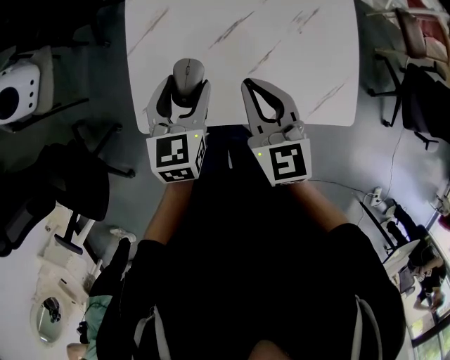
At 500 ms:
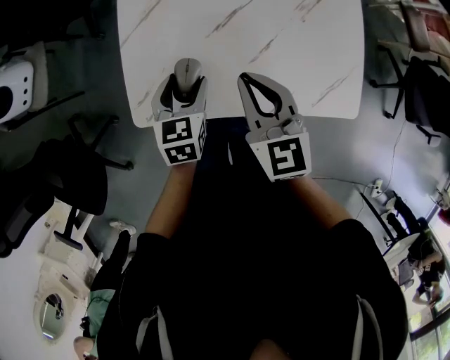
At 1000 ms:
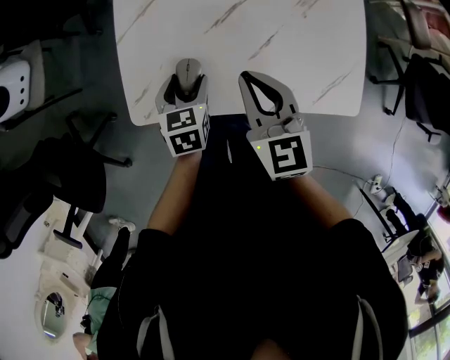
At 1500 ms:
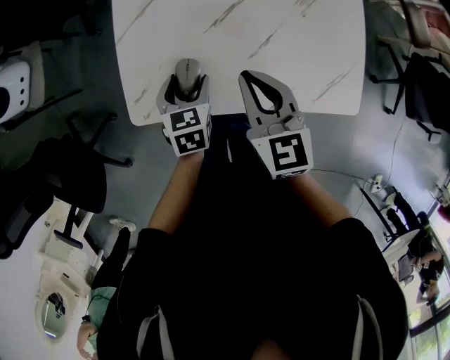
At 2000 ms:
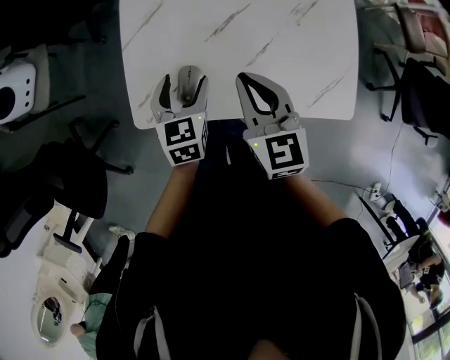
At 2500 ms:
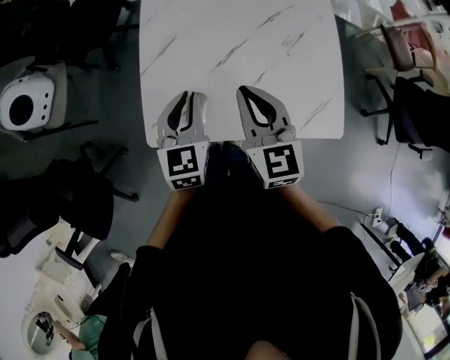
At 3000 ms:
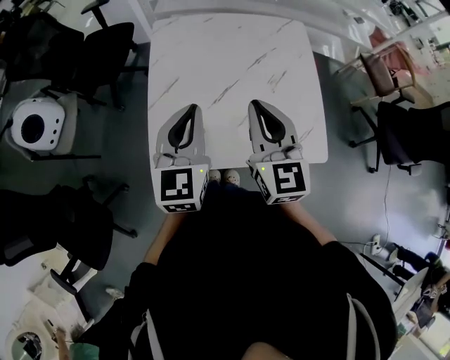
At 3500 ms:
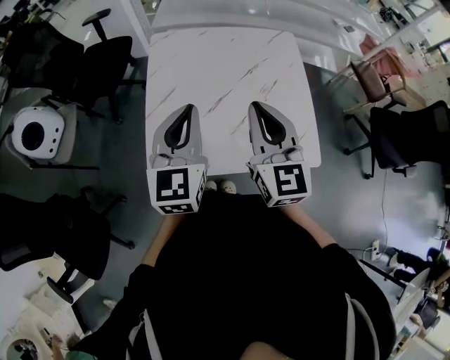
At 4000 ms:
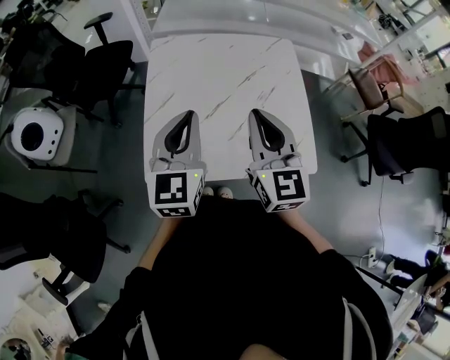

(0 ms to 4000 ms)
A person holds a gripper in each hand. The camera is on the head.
0 ms - 2000 ms: The left gripper travels downward by about 5 cm.
2000 ms - 4000 ms: The grippers both shift upward by some 25 cm. The right gripper turns by some 20 degrees, while the left gripper points its fingers roughly 30 degrees further upward, and closes up.

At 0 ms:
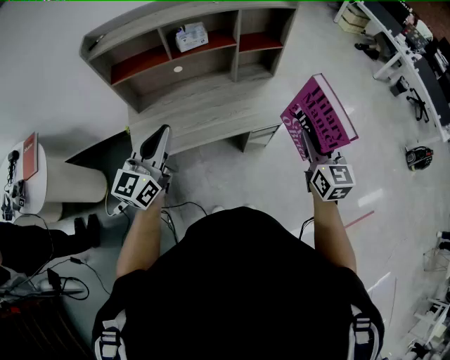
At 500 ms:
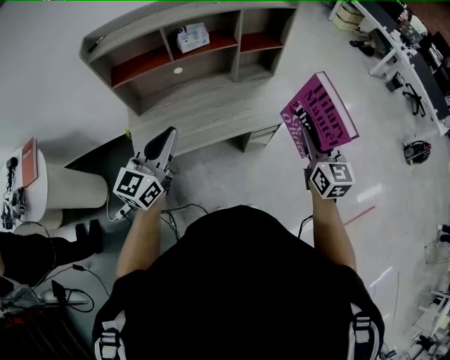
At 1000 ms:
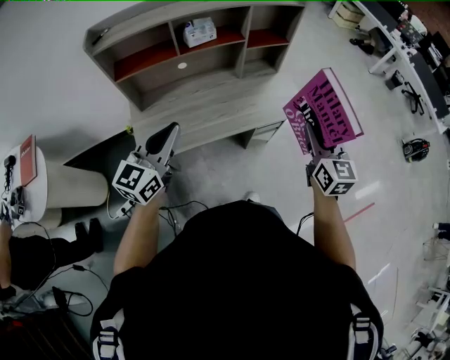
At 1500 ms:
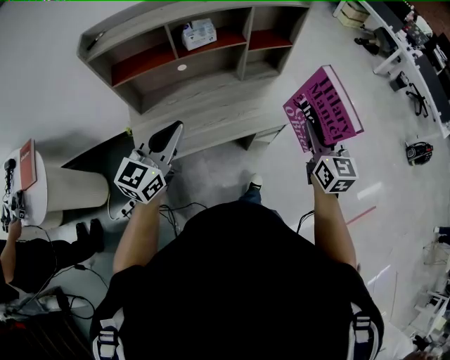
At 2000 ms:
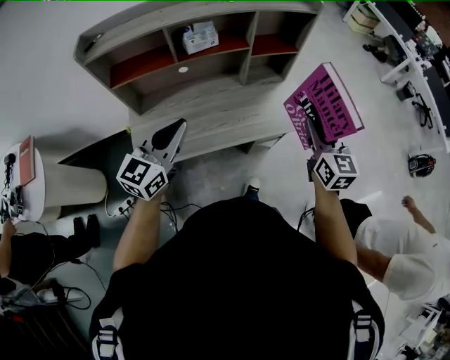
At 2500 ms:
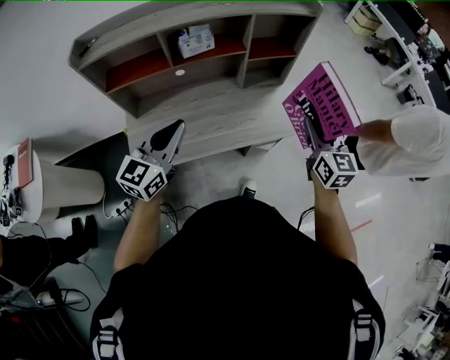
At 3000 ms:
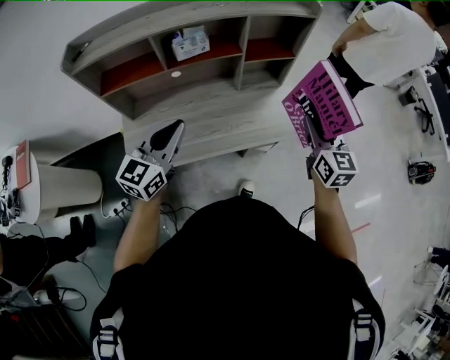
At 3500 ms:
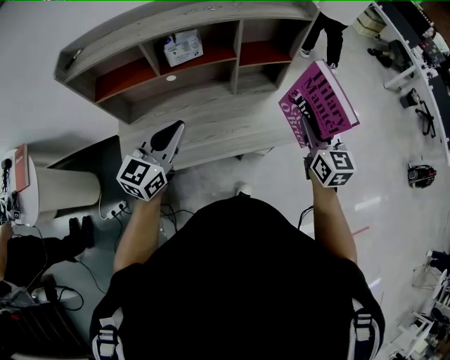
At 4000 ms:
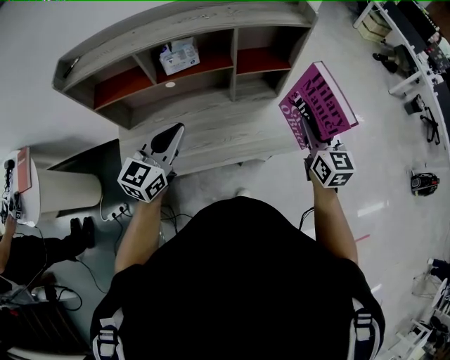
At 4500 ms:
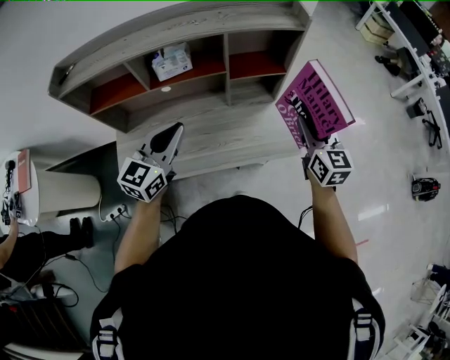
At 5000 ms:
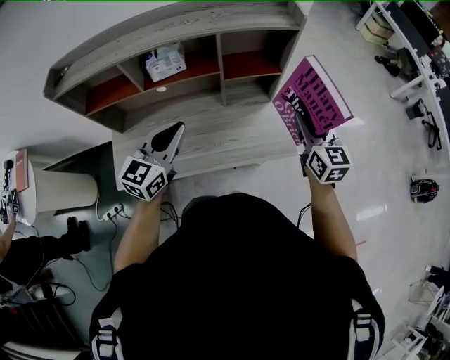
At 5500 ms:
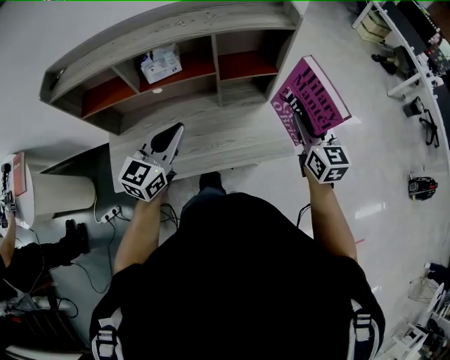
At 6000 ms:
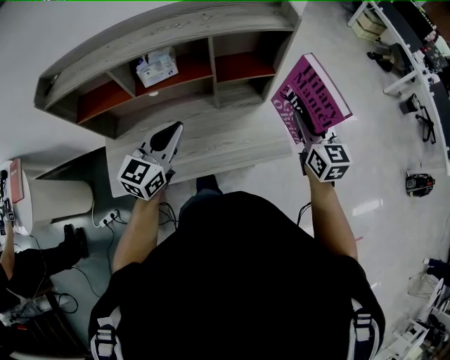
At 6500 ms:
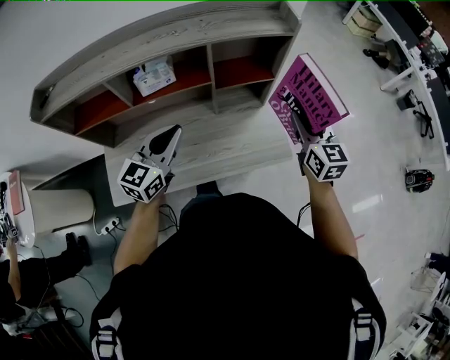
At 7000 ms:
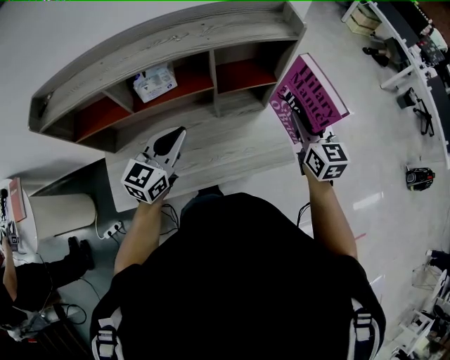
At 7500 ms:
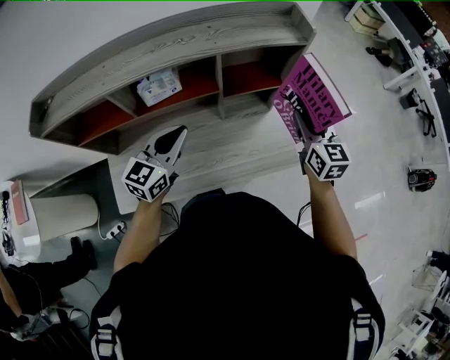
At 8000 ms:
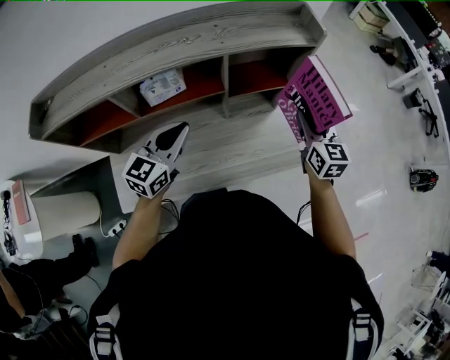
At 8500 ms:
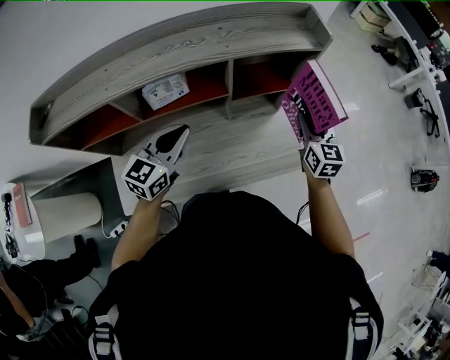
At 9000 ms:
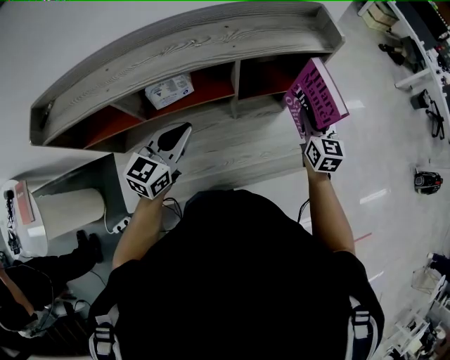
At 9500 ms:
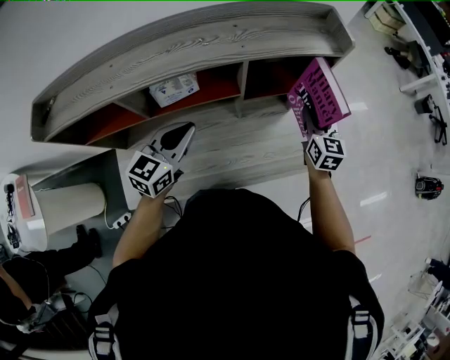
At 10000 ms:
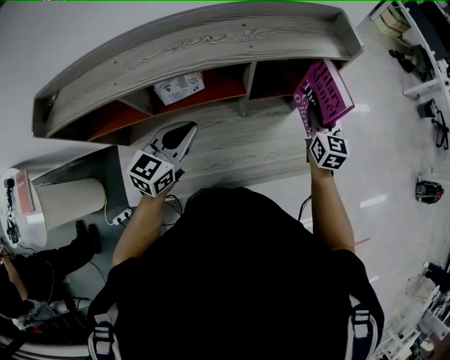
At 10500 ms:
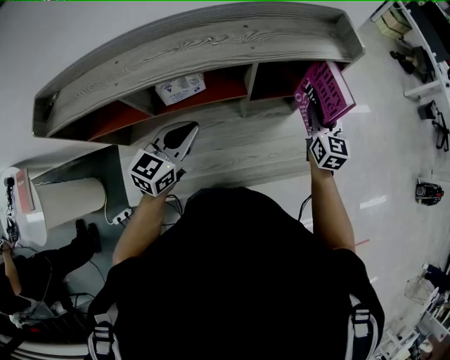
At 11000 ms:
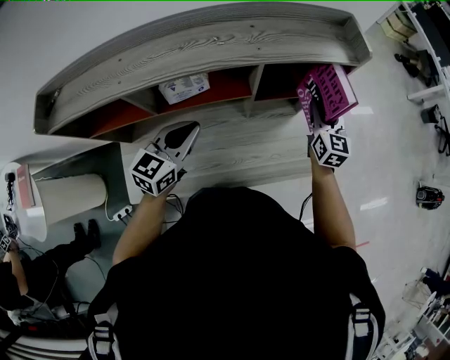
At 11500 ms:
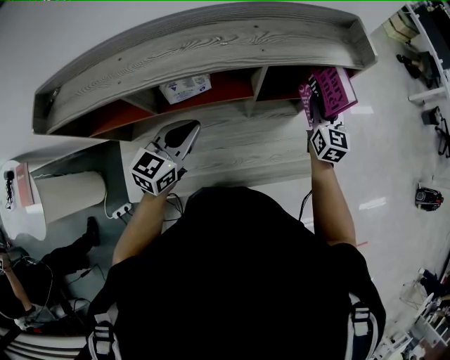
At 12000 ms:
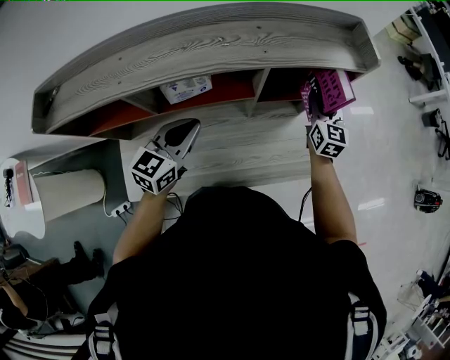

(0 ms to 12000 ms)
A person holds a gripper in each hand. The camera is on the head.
0 ms - 2000 ms: The right gripper travels forward and to the left by some 10 cm. The left gripper heads forward, covering about 10 cm.
2000 ms - 4000 ms: The right gripper moves forward, roughly 15 cm; the left gripper heads forward and to the right, covering some 15 cm.
4000 ms - 6000 ms: The right gripper moves forward, approximately 5 cm. Meanwhile the left gripper heads forward and to the right, covering roughly 10 cm.
6000 ms - 8000 ms: Both grippers move forward, approximately 10 cm.
8000 ms - 10000 ms: The right gripper travels forward and downward by roughly 10 cm.
10000 ms - 12000 ms: The right gripper heads forward, covering roughly 5 cm.

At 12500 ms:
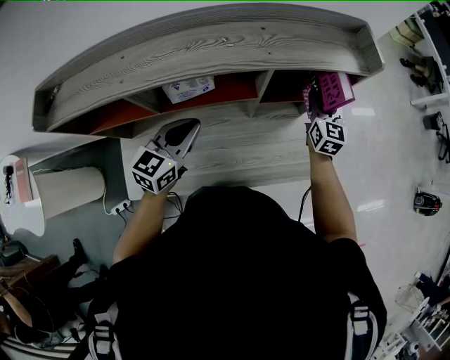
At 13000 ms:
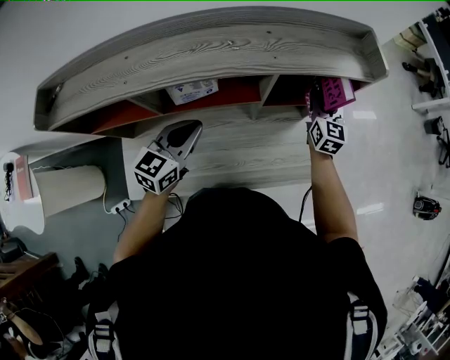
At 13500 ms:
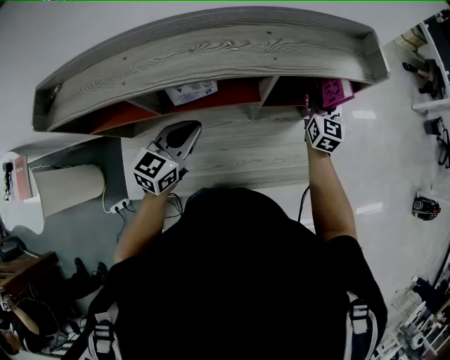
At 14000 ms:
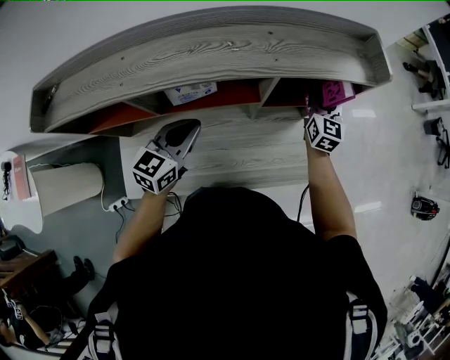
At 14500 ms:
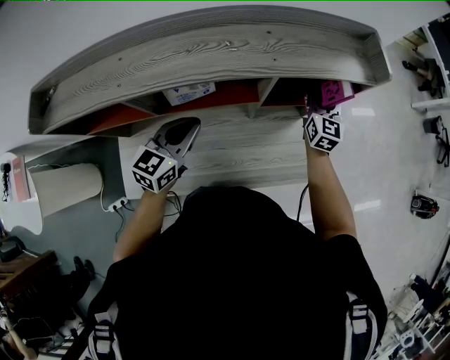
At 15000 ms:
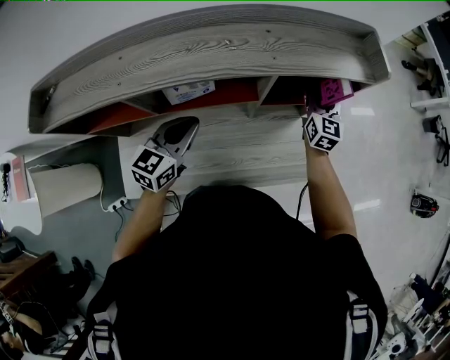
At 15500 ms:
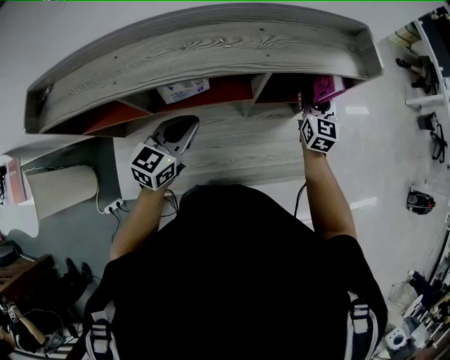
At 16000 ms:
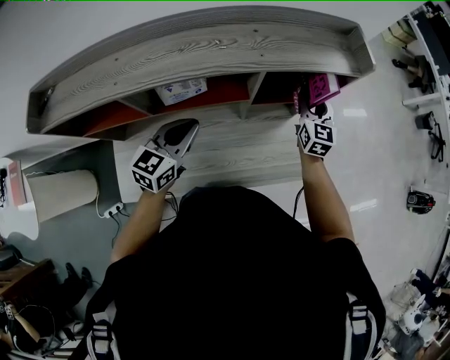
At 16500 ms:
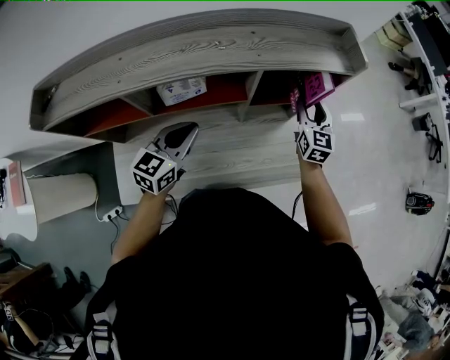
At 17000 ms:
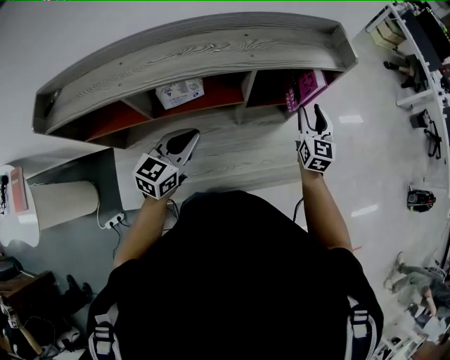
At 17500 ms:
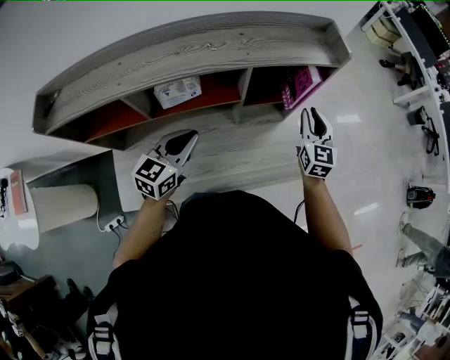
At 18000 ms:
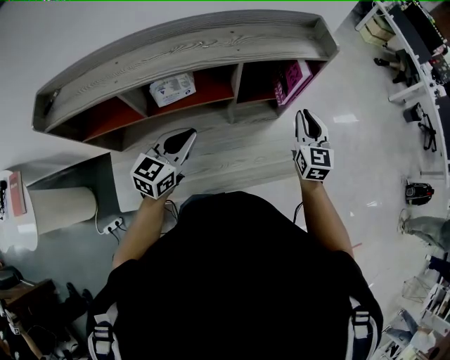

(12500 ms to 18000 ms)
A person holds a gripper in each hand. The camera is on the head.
12500 ms - 16000 ms: The grippers stay close to where they were, moving slightly.
16000 ms - 18000 ms: The left gripper shifts by some 5 cm. Meanwhile the right gripper travels backward, to the right and upward by some 15 cm, and closes.

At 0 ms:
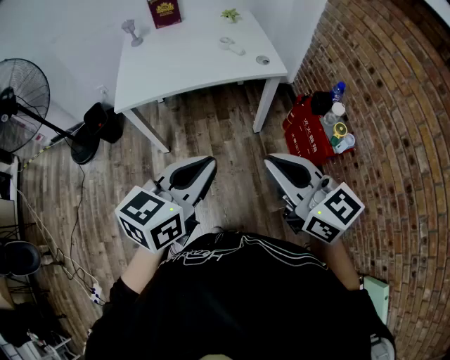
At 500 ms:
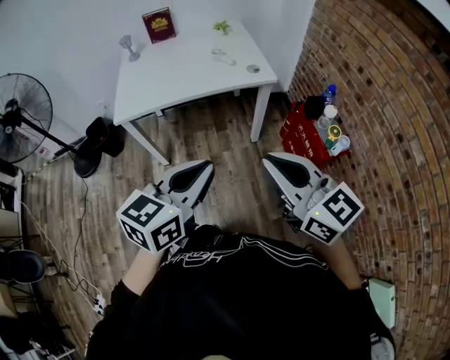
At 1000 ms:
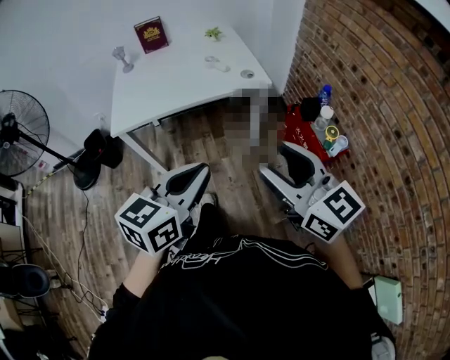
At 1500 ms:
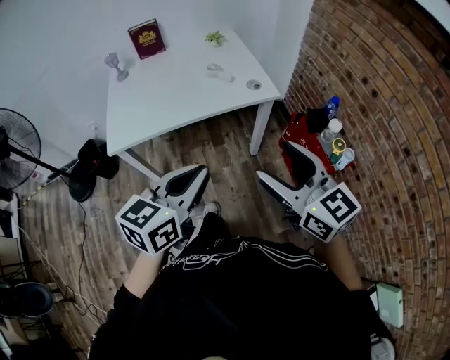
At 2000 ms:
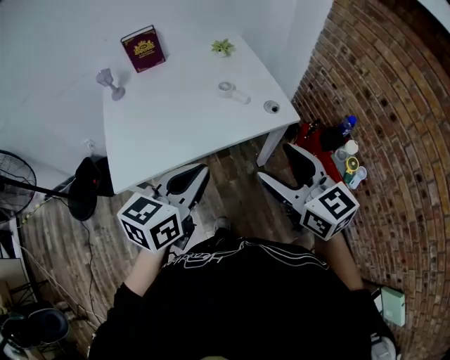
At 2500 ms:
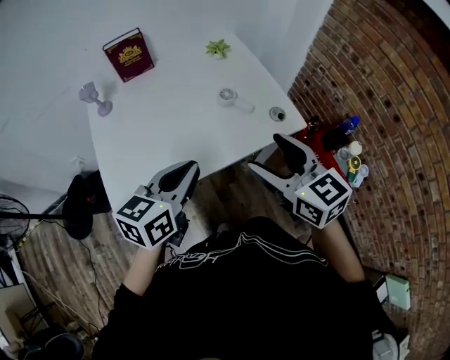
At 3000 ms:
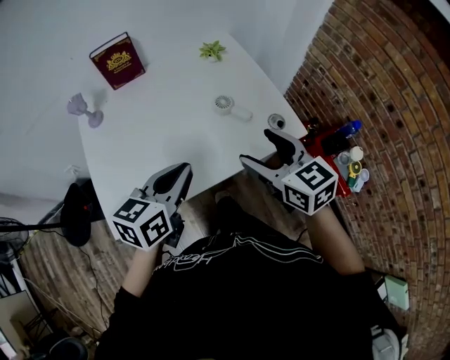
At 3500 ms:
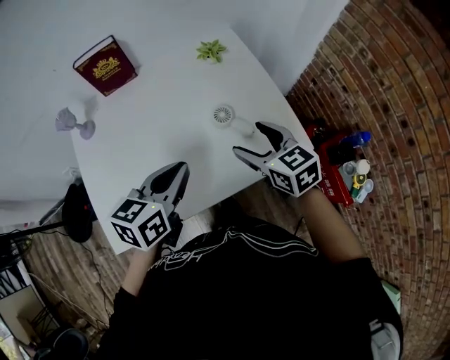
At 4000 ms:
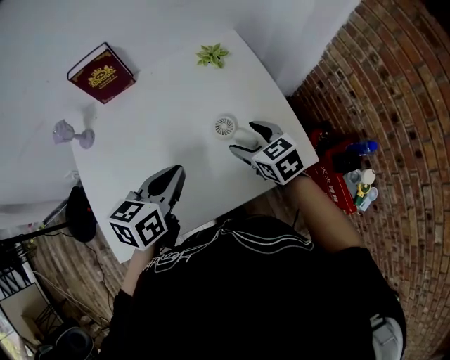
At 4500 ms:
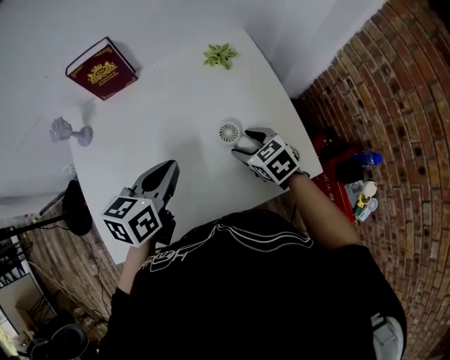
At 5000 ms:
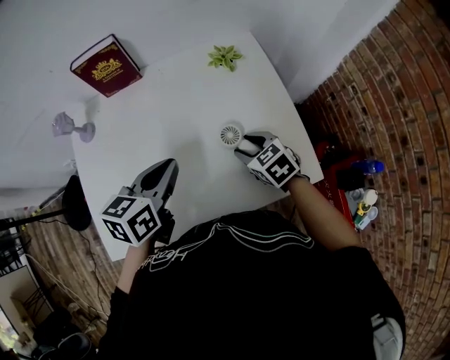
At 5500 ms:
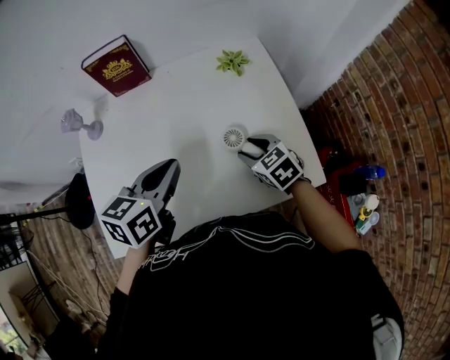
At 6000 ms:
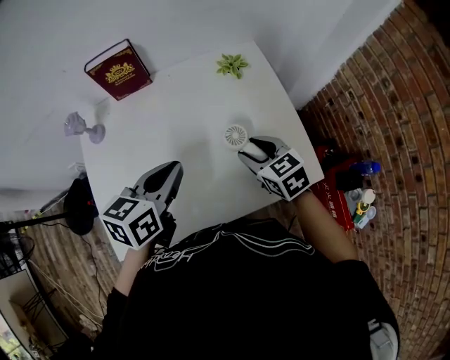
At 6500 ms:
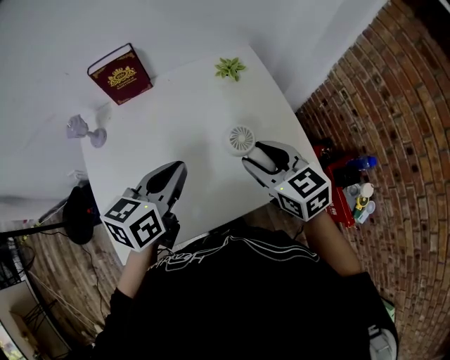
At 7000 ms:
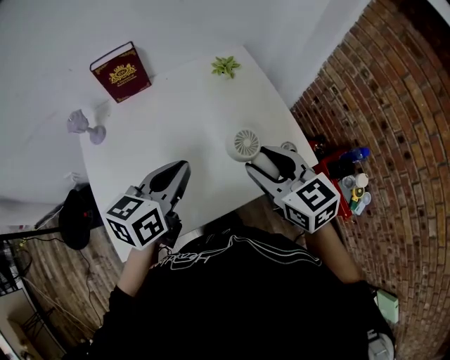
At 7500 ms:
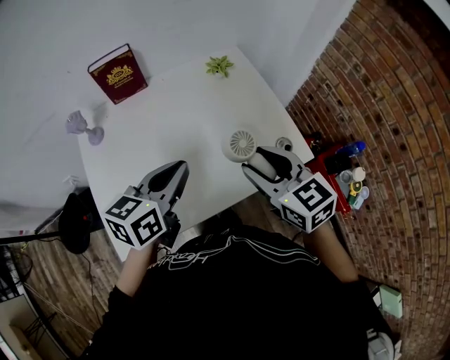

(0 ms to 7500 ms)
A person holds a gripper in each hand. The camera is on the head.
0 ms - 2000 ms: Both grippers travel together forward, some 25 cm. The right gripper opens its fingers.
2000 ms - 4000 ms: The right gripper is displaced forward and downward by about 40 cm, and turns by approximately 30 degrees, while the left gripper moves forward, approximately 30 cm.
4000 ms - 5500 ms: The right gripper closes its fingers.
5500 ms - 7500 ms: The right gripper heads upward and backward, covering roughly 25 cm, and swivels roughly 30 degrees. The left gripper shifts approximately 5 cm backward.
